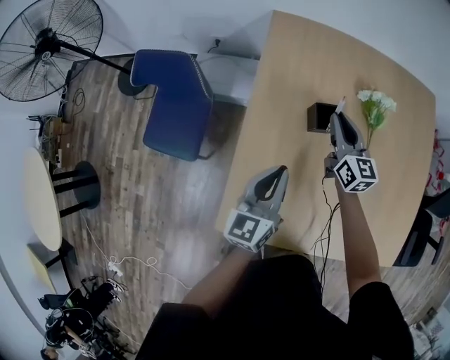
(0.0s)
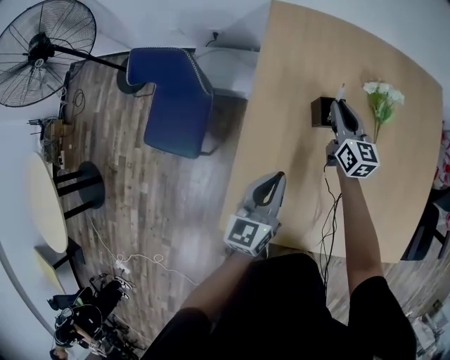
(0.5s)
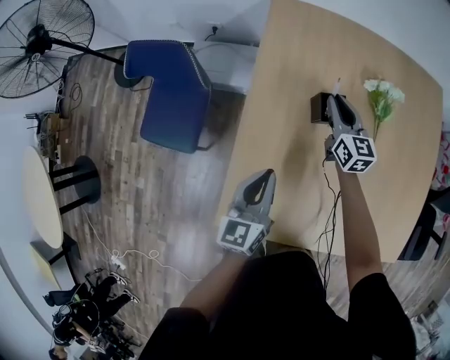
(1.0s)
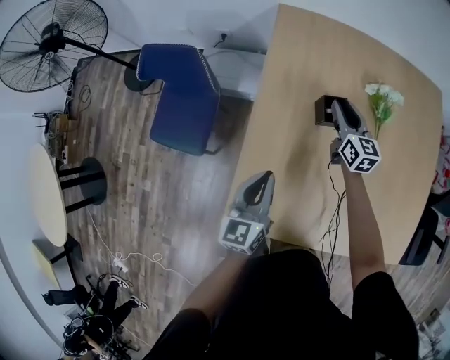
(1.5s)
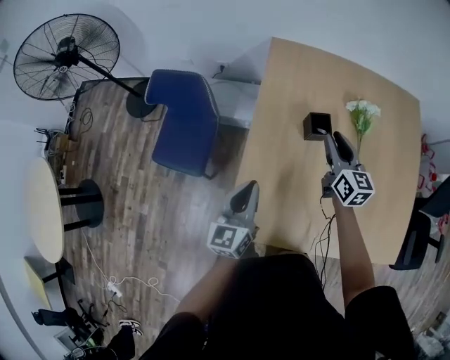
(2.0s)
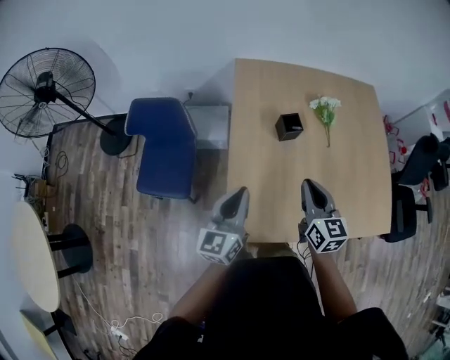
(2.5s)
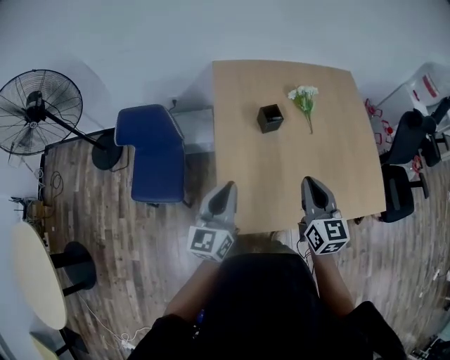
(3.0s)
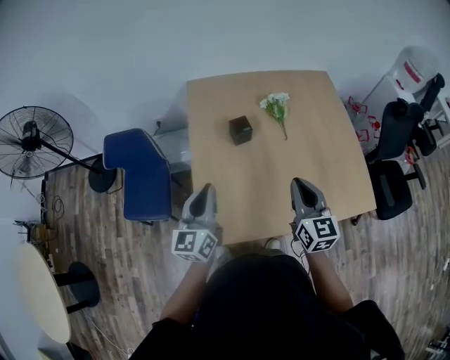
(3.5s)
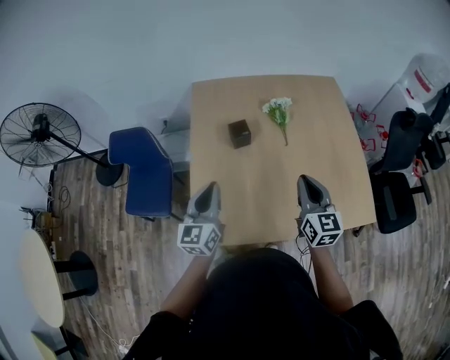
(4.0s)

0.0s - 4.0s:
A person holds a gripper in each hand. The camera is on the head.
0.0s - 2.0s: The left gripper shifts some 15 cm to the left and backward; the right gripper travels backward and upward by approximately 10 cm.
2.0s - 4.0s: The right gripper moves backward, to the right and upward, about 35 cm, and closes; the left gripper is displaced to the right, upward and backward by roughly 20 cm.

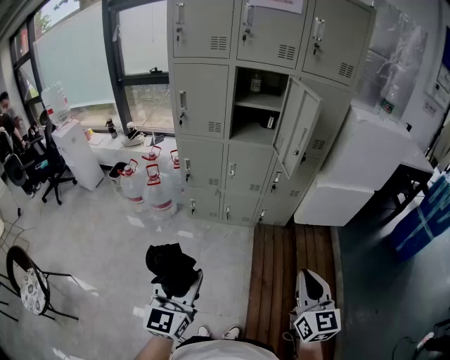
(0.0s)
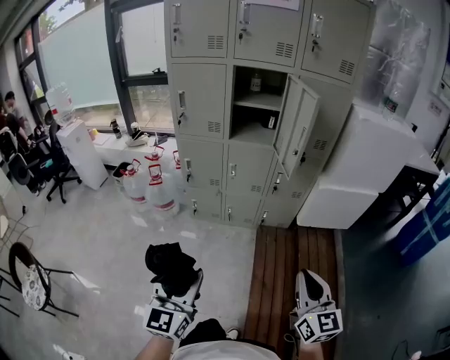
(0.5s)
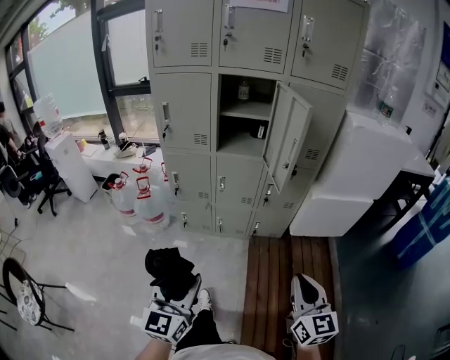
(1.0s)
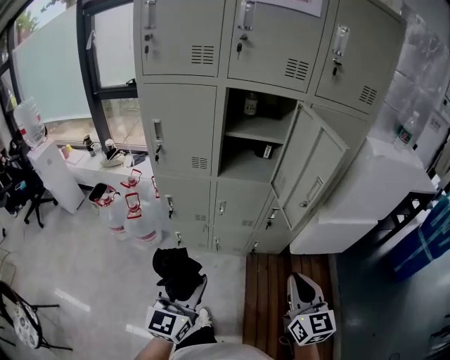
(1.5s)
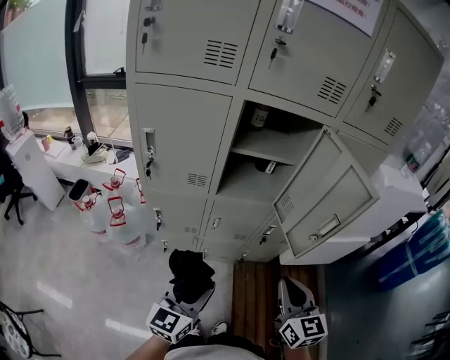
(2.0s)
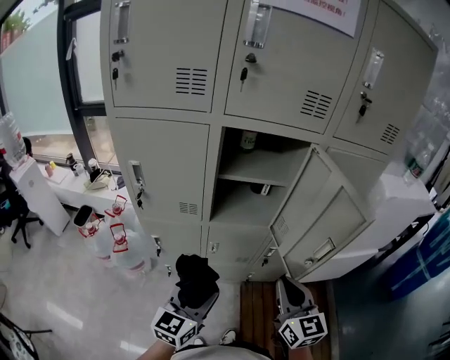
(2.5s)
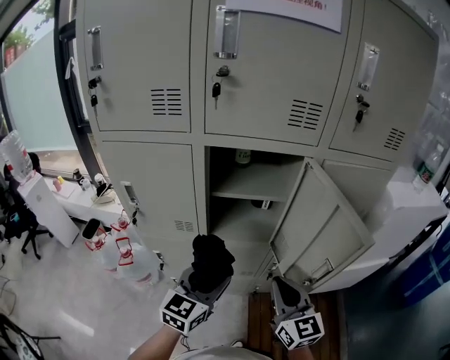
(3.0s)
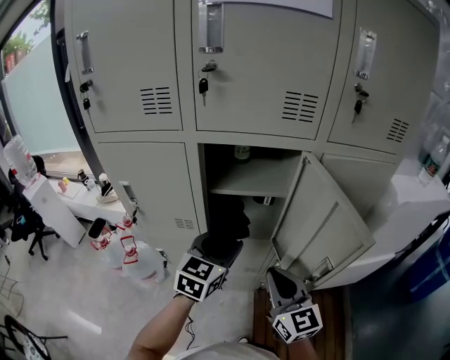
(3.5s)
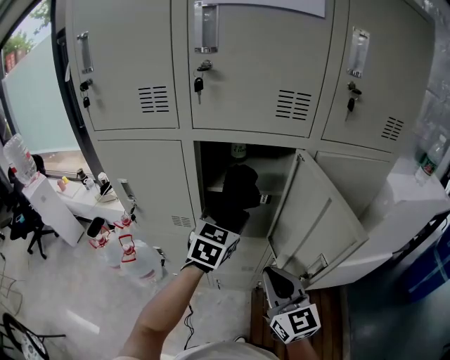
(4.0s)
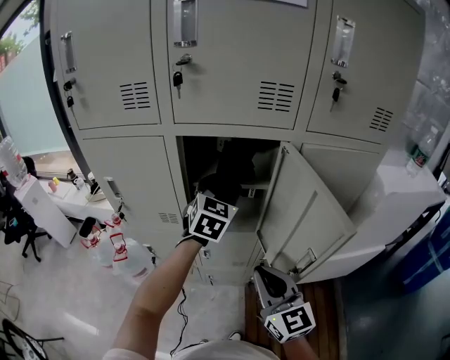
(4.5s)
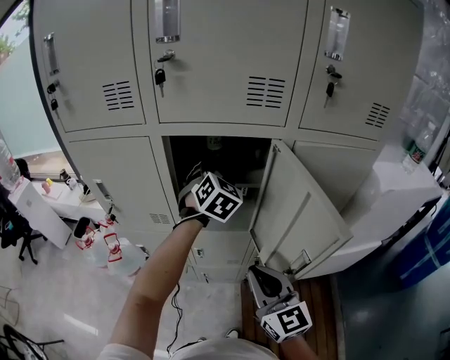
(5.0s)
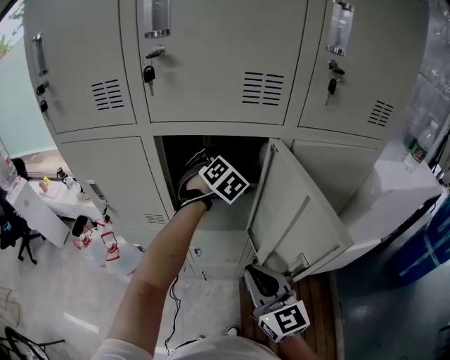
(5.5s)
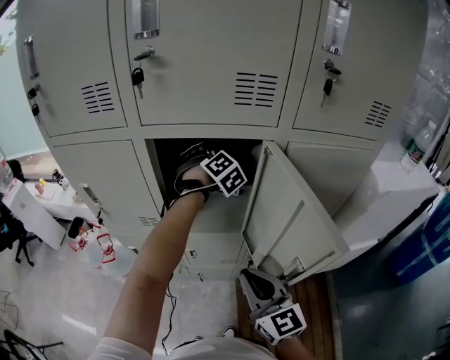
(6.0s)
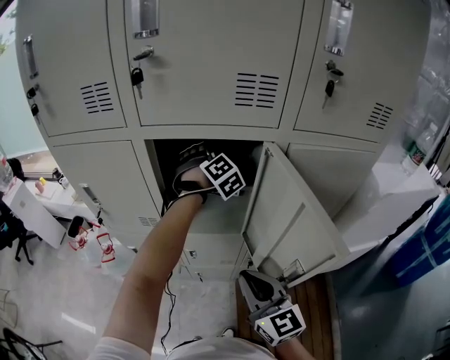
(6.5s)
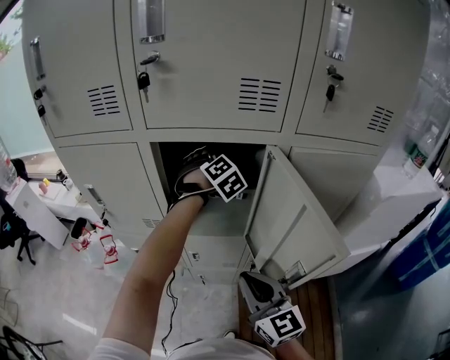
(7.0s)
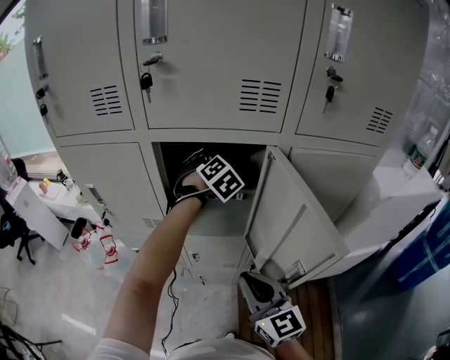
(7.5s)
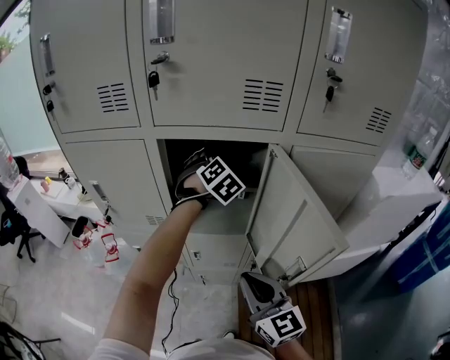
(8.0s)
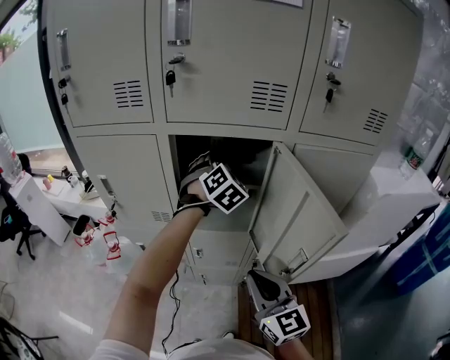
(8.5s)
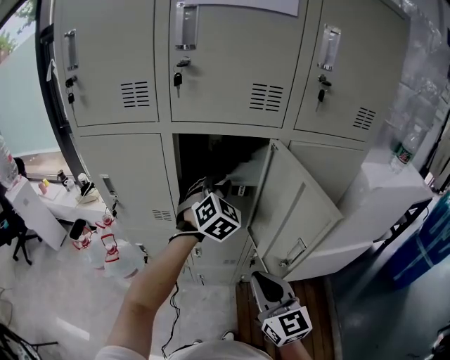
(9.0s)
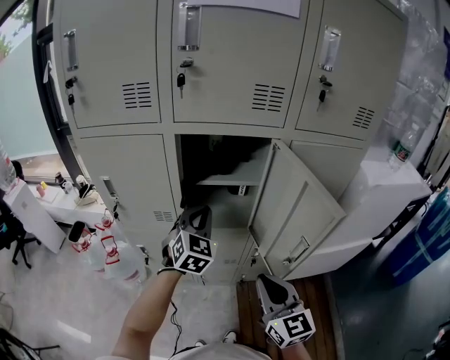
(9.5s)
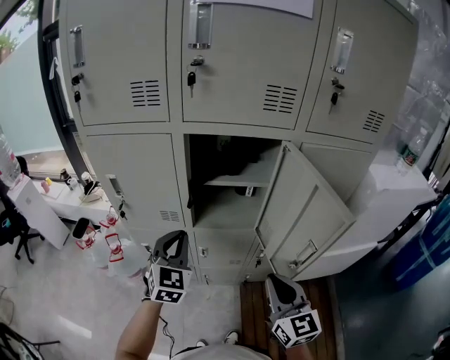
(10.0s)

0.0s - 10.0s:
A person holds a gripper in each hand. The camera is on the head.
0.0s - 2.0s: Both grippers travel together forward, roughly 35 cm. The left gripper rotates roughly 20 degrees.
2.0s - 4.0s: The left gripper goes roughly 30 cm forward, and changes its angle by some 20 degrees, while the right gripper moves forward, roughly 15 cm.
4.0s - 6.0s: The left gripper shifts roughly 20 cm forward, and changes its angle by approximately 50 degrees.
6.0s - 8.0s: The grippers make only small movements.
8.0s - 10.0s: The right gripper shifts by some 5 cm. Meanwhile the left gripper moves backward and to the left, roughly 30 cm, rotates about 30 degrees, and closes.

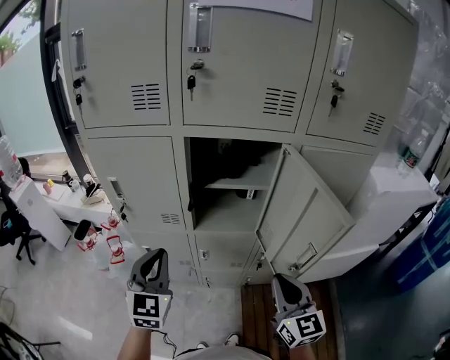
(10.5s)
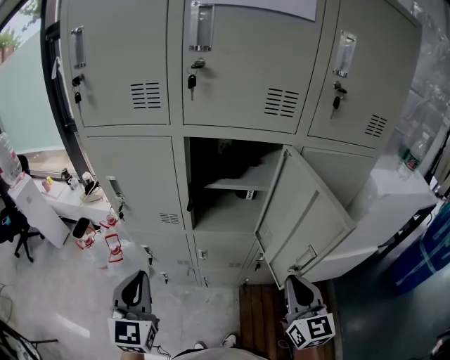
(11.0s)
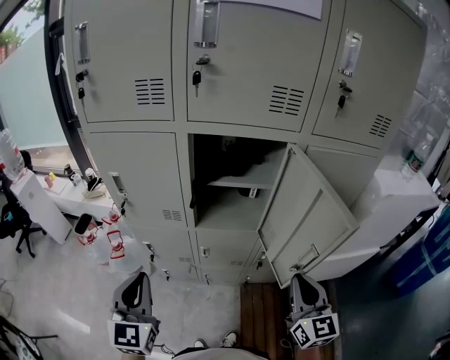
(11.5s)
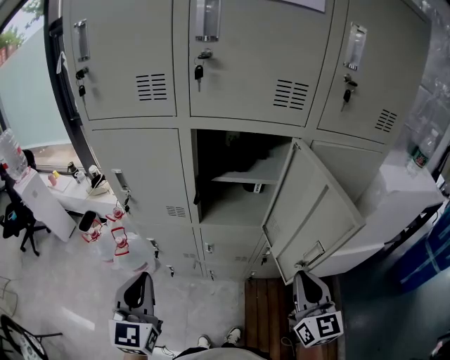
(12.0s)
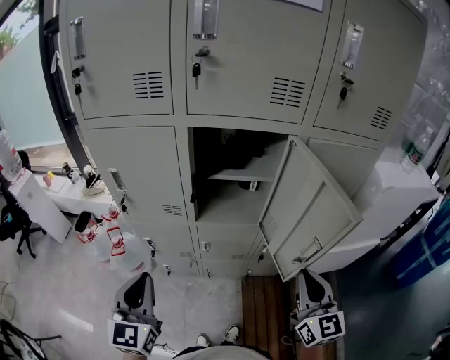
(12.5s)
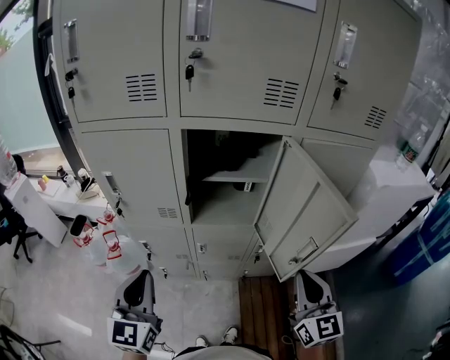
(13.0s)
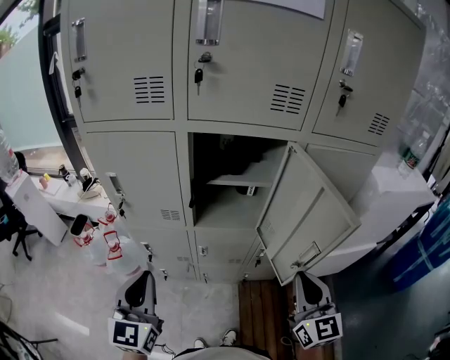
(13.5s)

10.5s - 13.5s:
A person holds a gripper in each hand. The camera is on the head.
10.5s - 12.0s: The left gripper moves backward, approximately 10 cm.
12.0s - 13.5s: The grippers stay close to where they were, moving slightly.

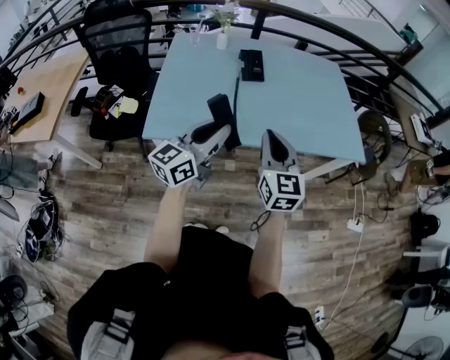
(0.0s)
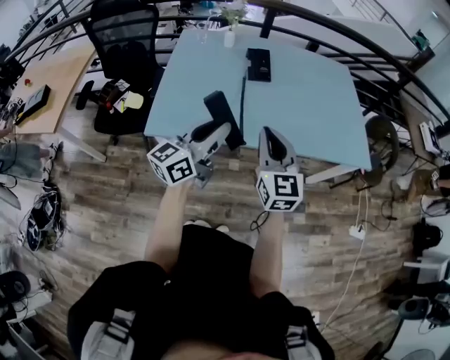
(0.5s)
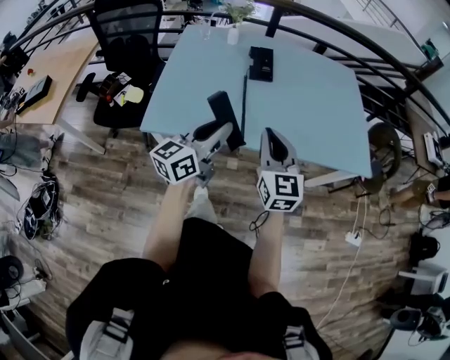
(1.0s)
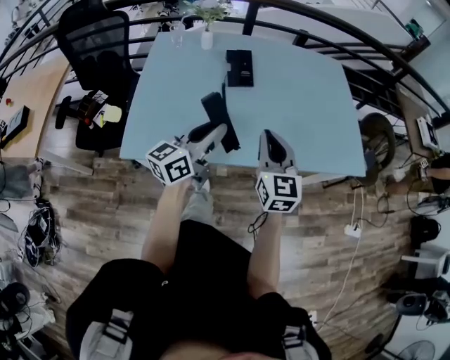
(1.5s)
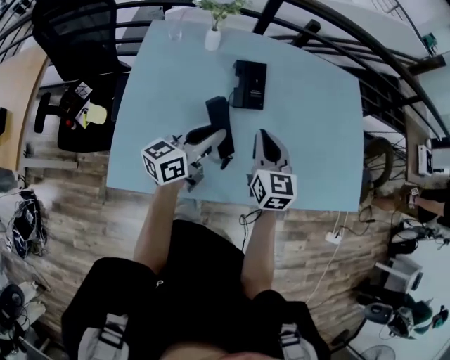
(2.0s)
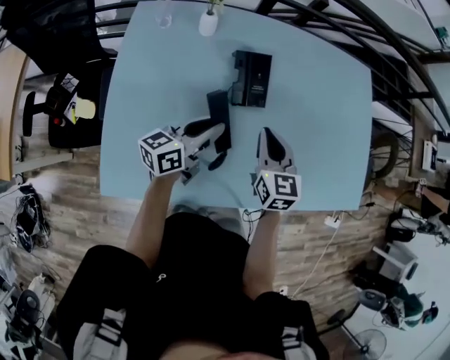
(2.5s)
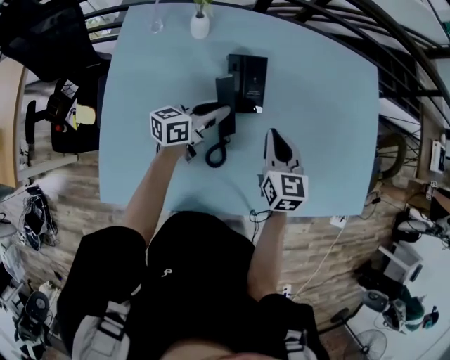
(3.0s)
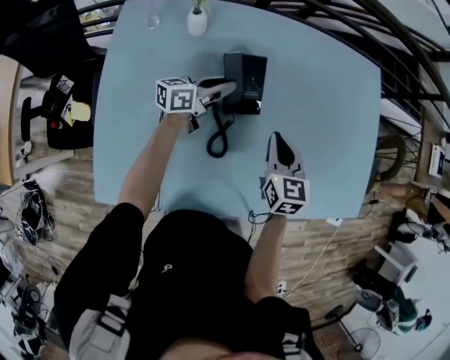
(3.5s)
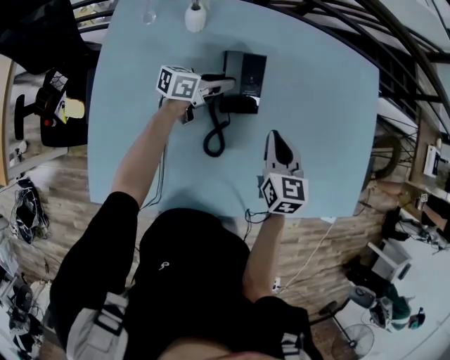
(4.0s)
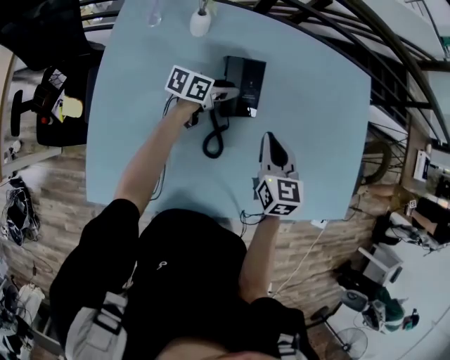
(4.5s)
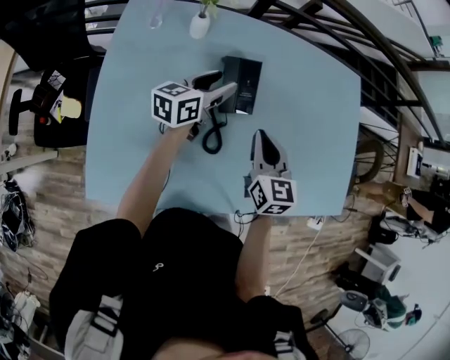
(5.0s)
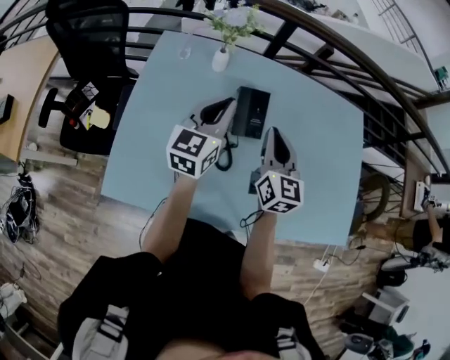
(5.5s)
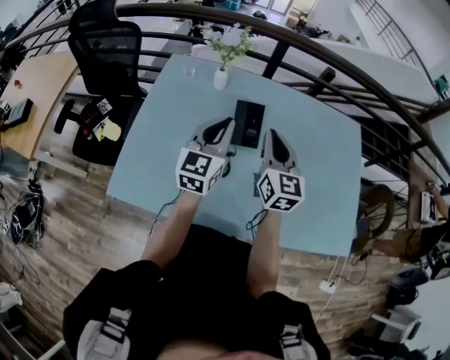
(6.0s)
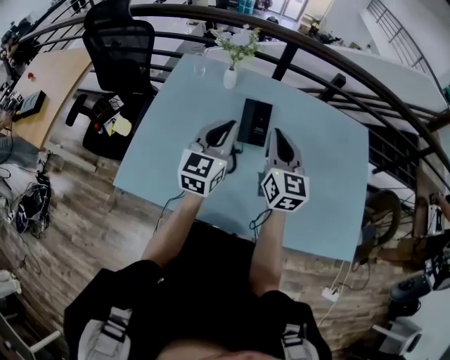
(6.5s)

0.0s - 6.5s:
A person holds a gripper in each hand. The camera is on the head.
0.0s - 2.0s: Both grippers move forward, some 35 cm.
2.0s - 4.5s: The left gripper moves forward and downward, about 30 cm, swivels approximately 30 degrees, and opens its fingers. The right gripper travels forward and downward by some 15 cm.
4.5s - 6.5s: The left gripper goes approximately 25 cm upward, turns by roughly 70 degrees, and closes; the right gripper is displaced upward by some 15 cm, and turns by approximately 30 degrees.

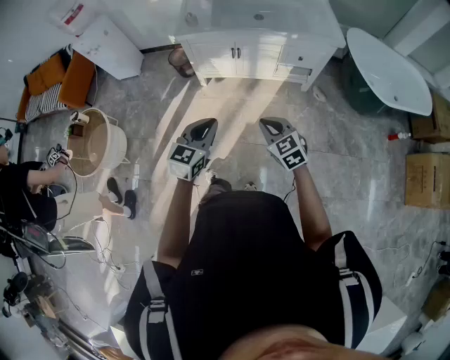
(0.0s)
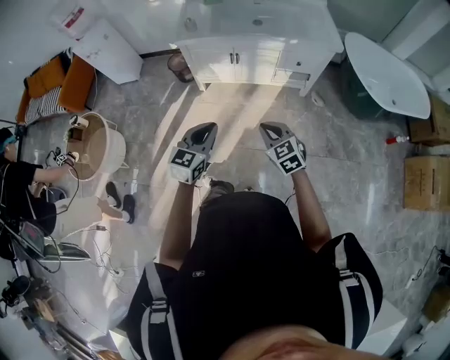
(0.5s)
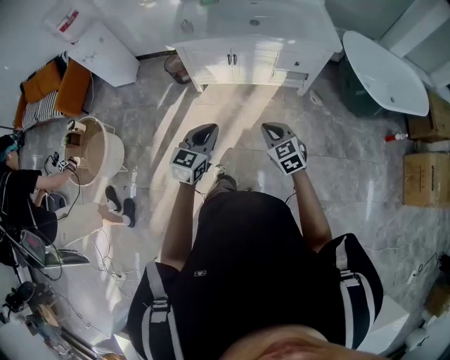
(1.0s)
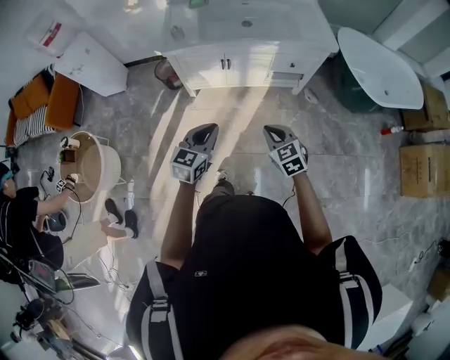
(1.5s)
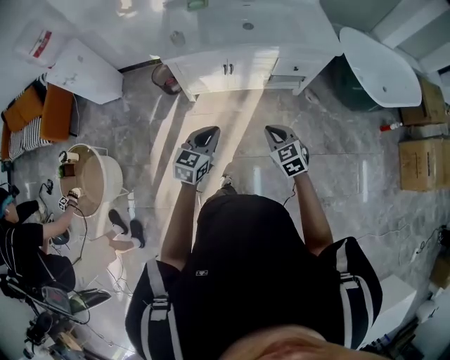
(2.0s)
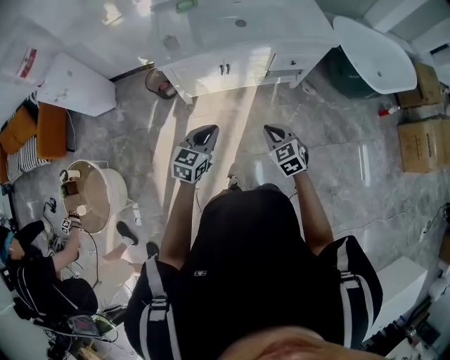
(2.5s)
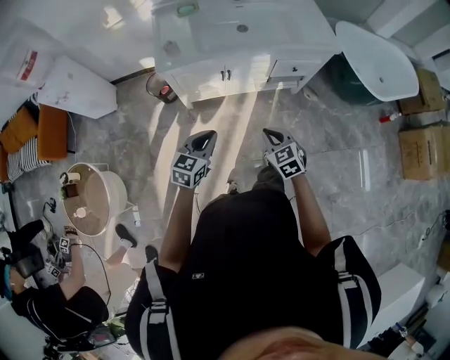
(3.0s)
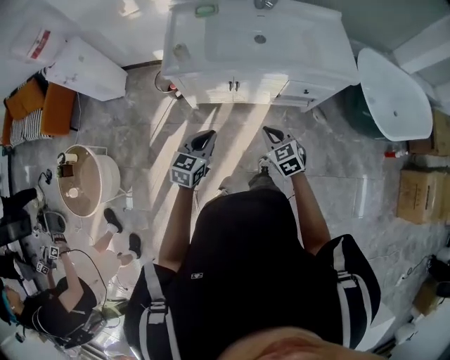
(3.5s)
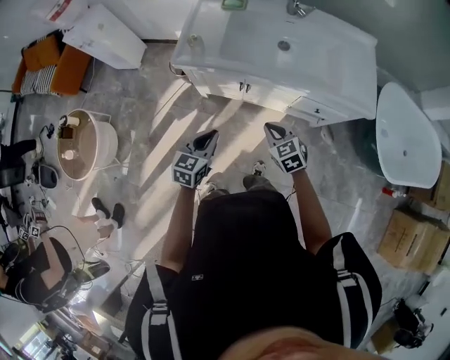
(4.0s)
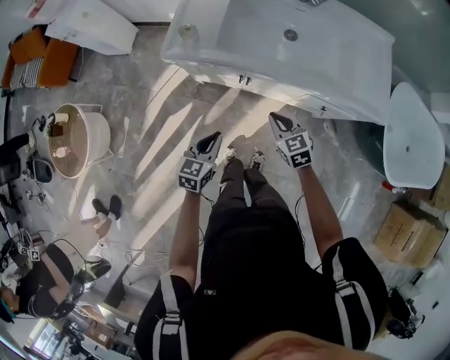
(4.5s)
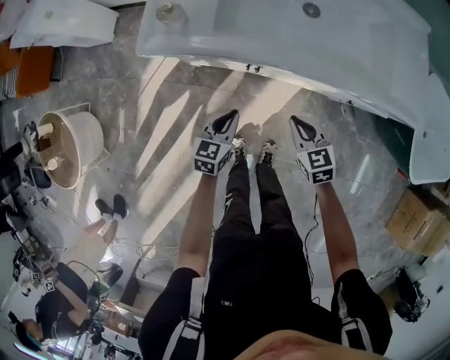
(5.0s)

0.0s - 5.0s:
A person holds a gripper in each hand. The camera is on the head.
0.0s - 2.5s: The grippers both shift forward and to the left by roughly 20 cm. The right gripper changes its angle by roughly 20 degrees.
2.5s - 5.0s: The right gripper shifts by approximately 35 cm. The left gripper moves roughly 40 cm, and swivels about 30 degrees.
